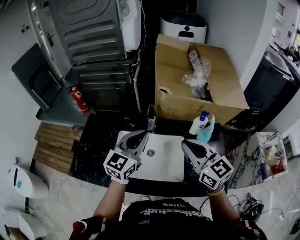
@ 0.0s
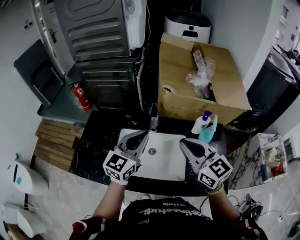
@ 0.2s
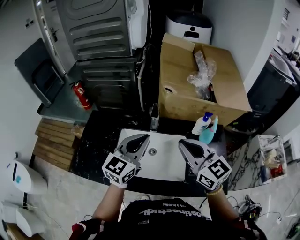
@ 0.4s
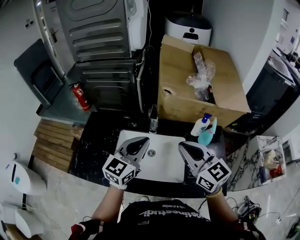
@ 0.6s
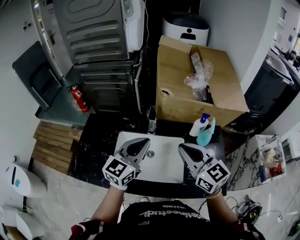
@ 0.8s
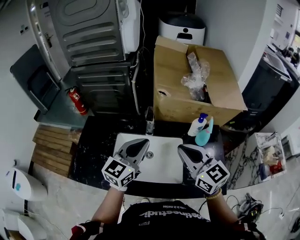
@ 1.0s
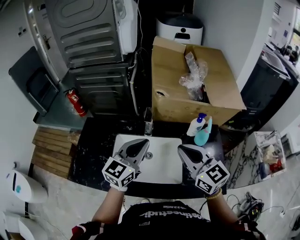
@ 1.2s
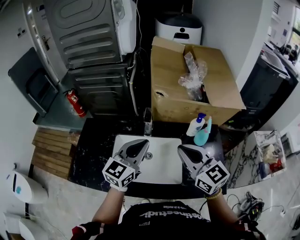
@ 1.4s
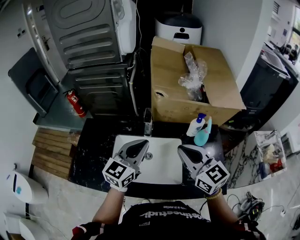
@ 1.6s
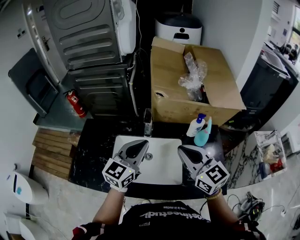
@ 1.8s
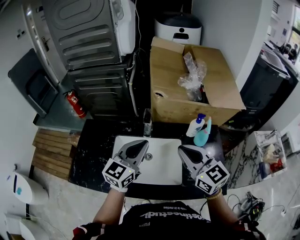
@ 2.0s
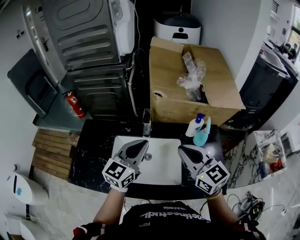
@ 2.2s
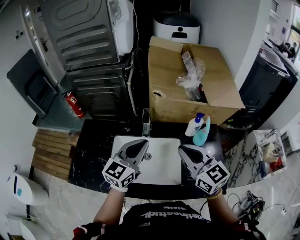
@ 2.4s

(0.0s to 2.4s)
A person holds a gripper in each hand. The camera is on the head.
0.0s - 2.4s: There are only small adjustments of the grippers.

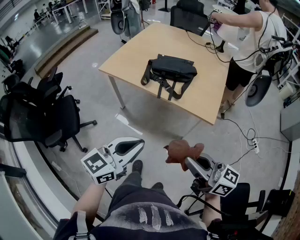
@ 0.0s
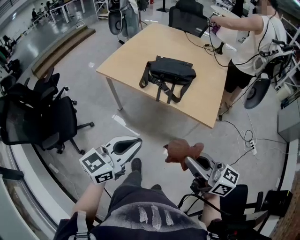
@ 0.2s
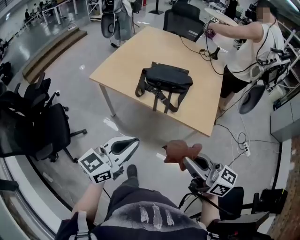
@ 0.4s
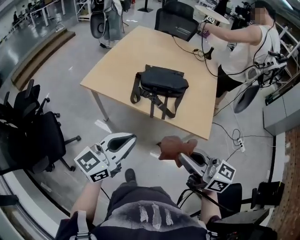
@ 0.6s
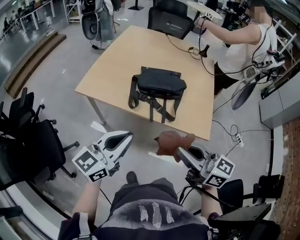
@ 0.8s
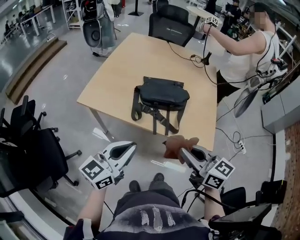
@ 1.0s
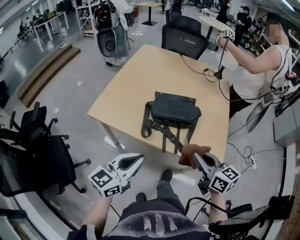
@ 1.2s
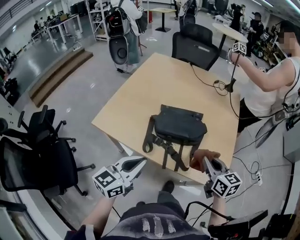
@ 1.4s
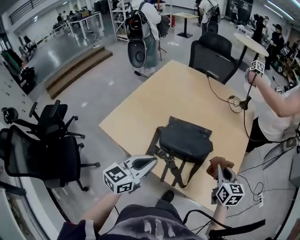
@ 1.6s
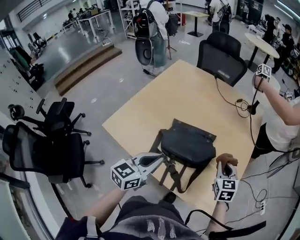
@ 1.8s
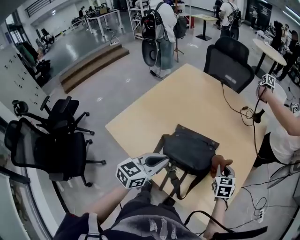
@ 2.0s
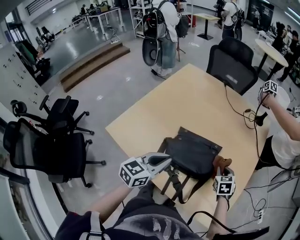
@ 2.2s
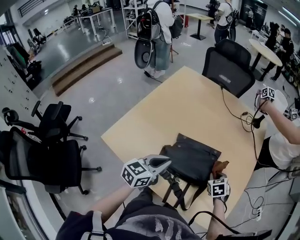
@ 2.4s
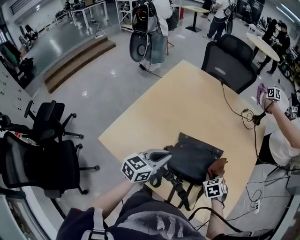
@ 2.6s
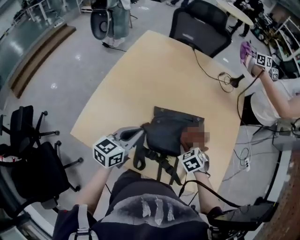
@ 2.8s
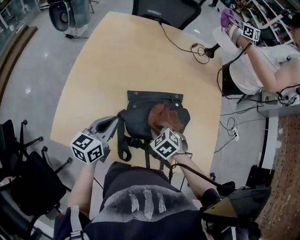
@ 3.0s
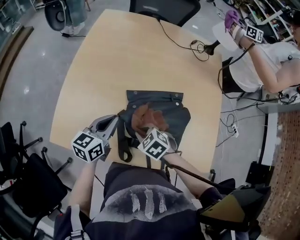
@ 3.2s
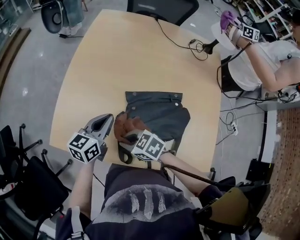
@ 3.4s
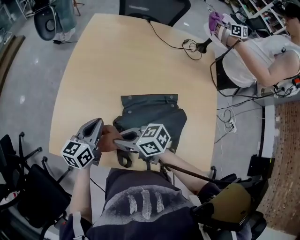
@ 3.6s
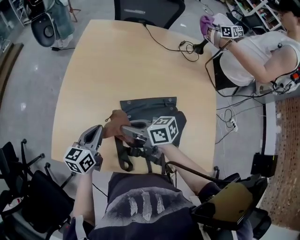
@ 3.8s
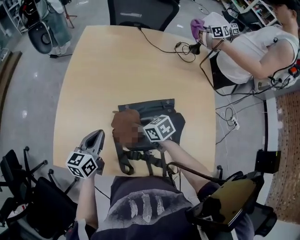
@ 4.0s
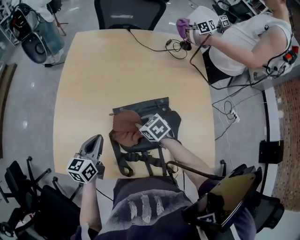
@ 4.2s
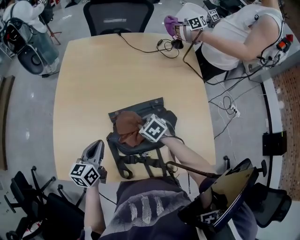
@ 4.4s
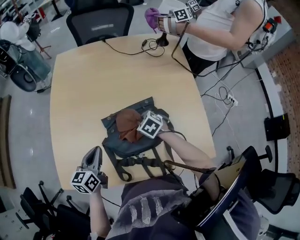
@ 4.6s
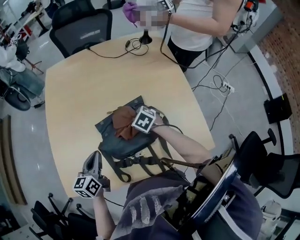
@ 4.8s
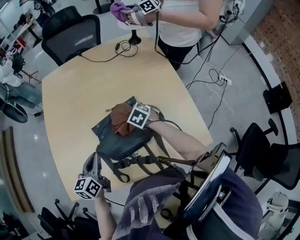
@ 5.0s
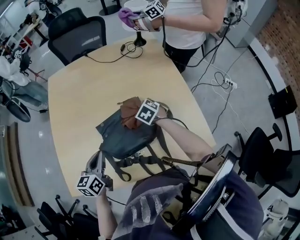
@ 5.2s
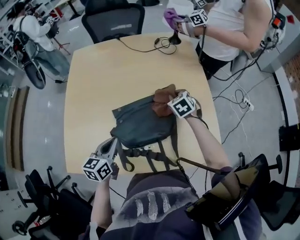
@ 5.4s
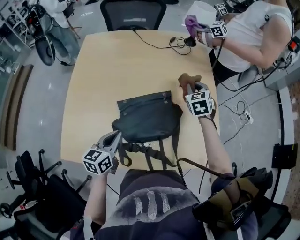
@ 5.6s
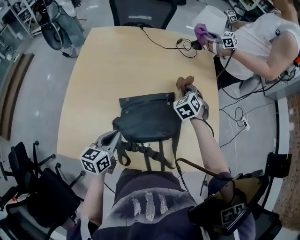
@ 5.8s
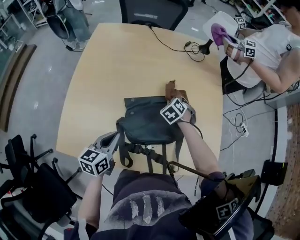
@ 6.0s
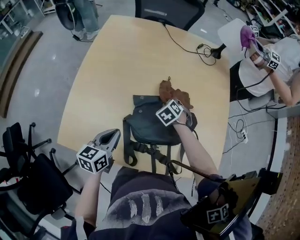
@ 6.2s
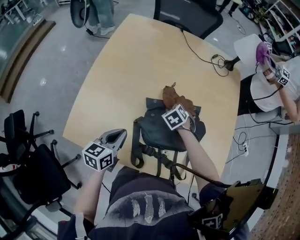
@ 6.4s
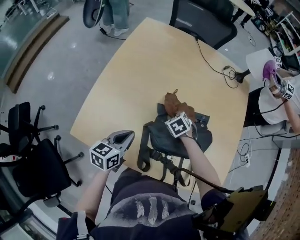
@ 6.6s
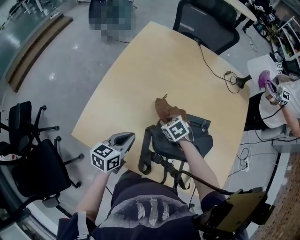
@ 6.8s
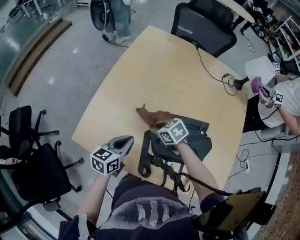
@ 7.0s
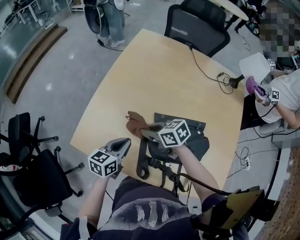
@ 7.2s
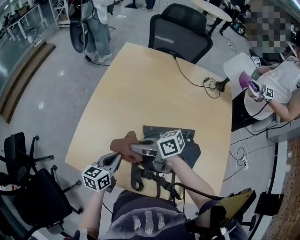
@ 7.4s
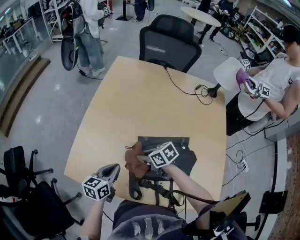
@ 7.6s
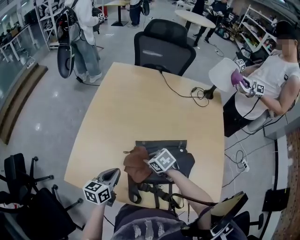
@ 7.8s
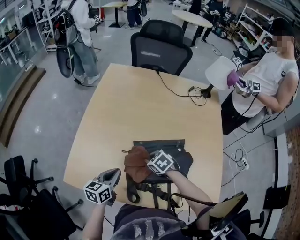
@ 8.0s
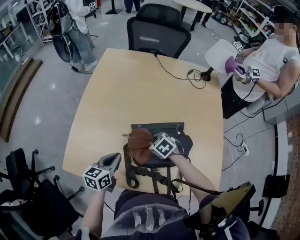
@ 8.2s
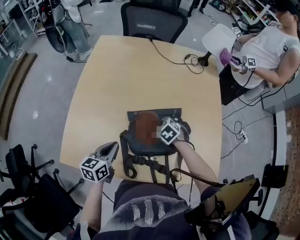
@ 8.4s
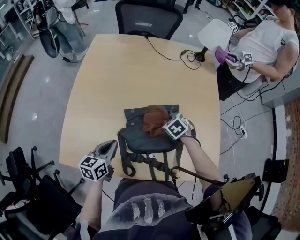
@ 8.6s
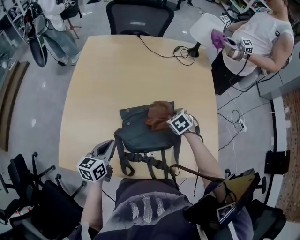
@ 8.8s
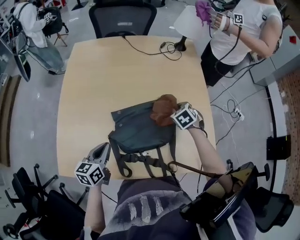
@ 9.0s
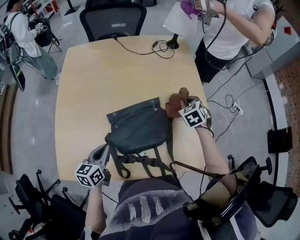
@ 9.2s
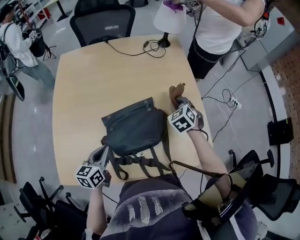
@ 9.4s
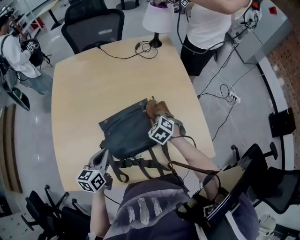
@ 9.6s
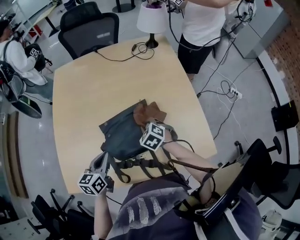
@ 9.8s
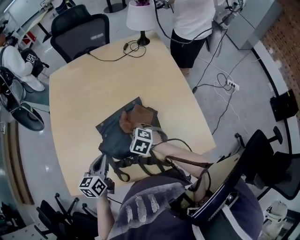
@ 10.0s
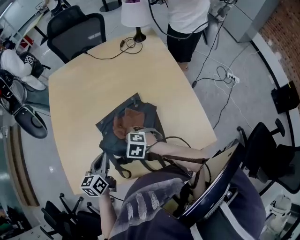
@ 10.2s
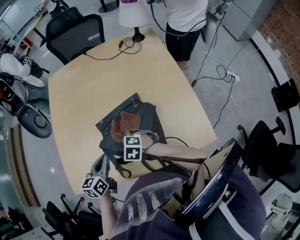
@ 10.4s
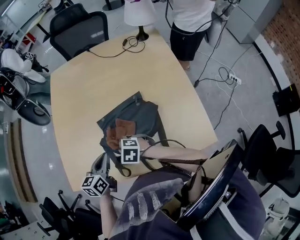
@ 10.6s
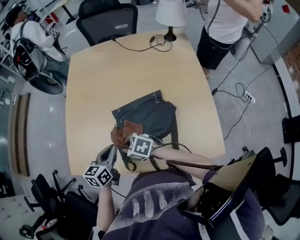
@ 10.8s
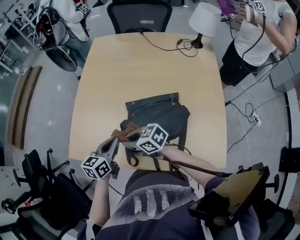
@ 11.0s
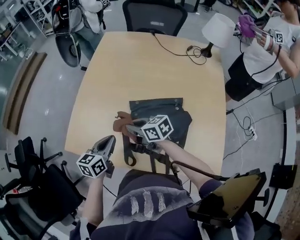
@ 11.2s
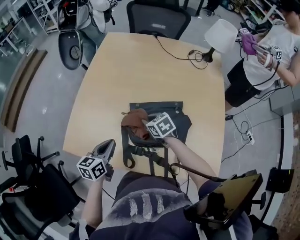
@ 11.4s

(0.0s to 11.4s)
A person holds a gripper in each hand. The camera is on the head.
0.0s - 1.4s: The two grippers go approximately 40 cm forward. The right gripper turns by approximately 40 degrees.
1.4s - 2.8s: The right gripper shifts roughly 30 cm downward, forward and to the left, and tilts its fingers approximately 40 degrees downward. The left gripper is displaced forward by approximately 30 cm.
2.8s - 4.2s: The right gripper goes upward and returns, some 10 cm each way, and rotates about 30 degrees.
4.2s - 5.6s: The right gripper moves about 30 cm, and turns by about 40 degrees. The left gripper ends up about 10 cm from where it was.
5.6s - 7.2s: The left gripper shifts by some 10 cm; the right gripper moves about 15 cm downward and comes back, and swivels about 70 degrees.
7.2s - 8.6s: The left gripper ends up some 5 cm from where it was; the right gripper moves about 25 cm, and points its fingers approximately 30 degrees further downward.
8.6s - 10.0s: The right gripper shifts roughly 10 cm backward, and goes to the right and returns, some 15 cm each way, while the left gripper heads to the right, covering approximately 5 cm.
10.0s - 11.4s: The right gripper changes its angle by some 20 degrees, while the left gripper shifts by about 10 cm.

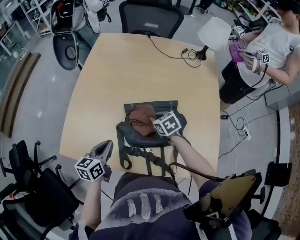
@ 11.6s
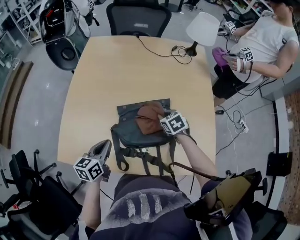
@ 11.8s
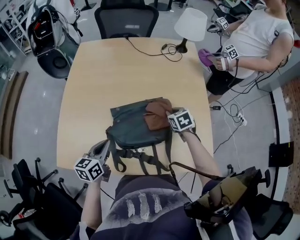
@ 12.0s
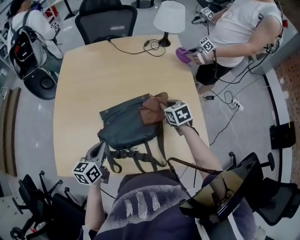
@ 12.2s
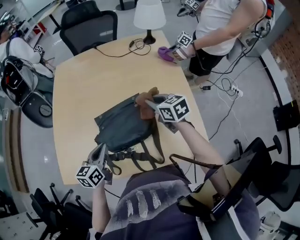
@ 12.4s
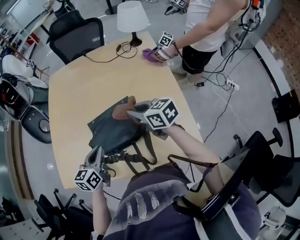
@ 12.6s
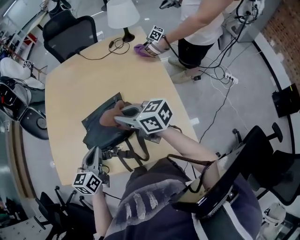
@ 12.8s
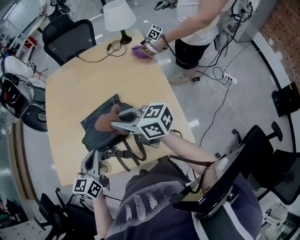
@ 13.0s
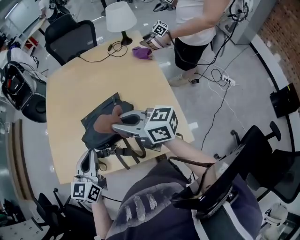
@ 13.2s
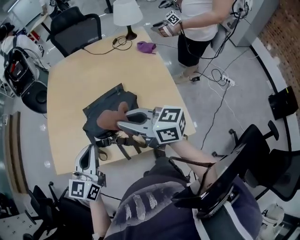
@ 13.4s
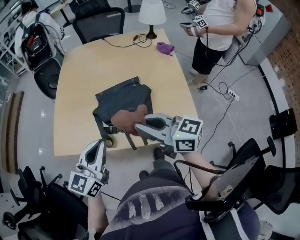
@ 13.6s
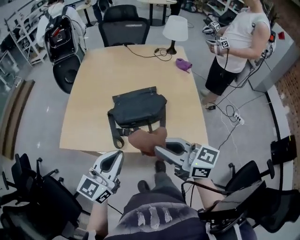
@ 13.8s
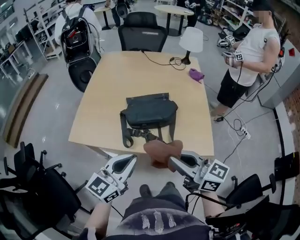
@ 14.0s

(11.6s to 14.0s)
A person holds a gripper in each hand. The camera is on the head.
11.6s - 12.8s: The right gripper shifts some 25 cm upward, to the right and backward, and tilts its fingers about 40 degrees upward. Meanwhile the left gripper goes about 20 cm to the right and upward.
12.8s - 14.0s: The left gripper heads backward and upward, covering about 25 cm, and swivels approximately 30 degrees, while the right gripper is displaced backward and to the left by about 30 cm.

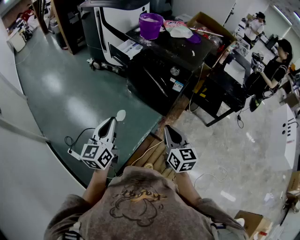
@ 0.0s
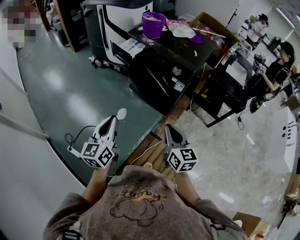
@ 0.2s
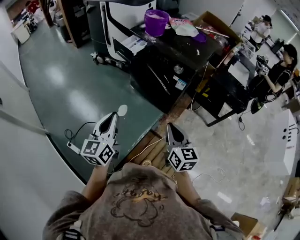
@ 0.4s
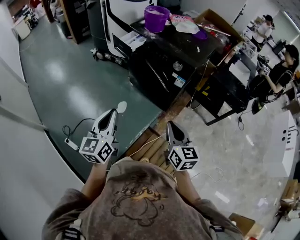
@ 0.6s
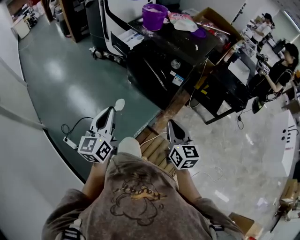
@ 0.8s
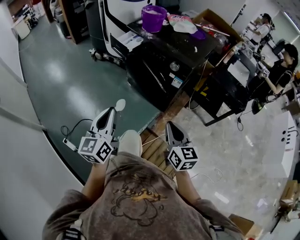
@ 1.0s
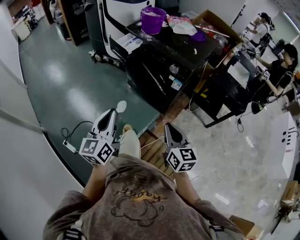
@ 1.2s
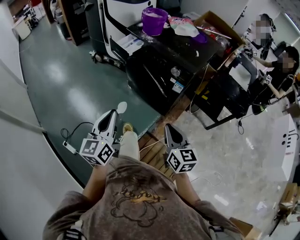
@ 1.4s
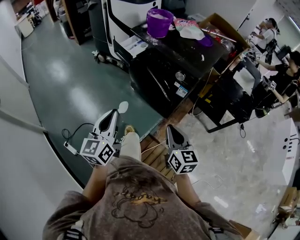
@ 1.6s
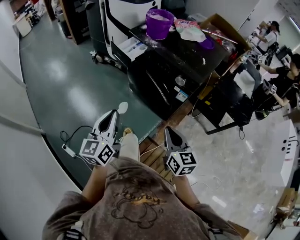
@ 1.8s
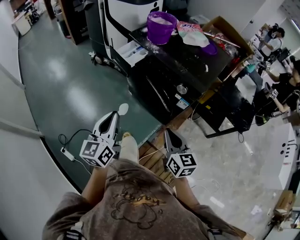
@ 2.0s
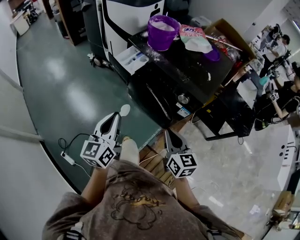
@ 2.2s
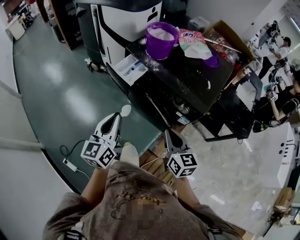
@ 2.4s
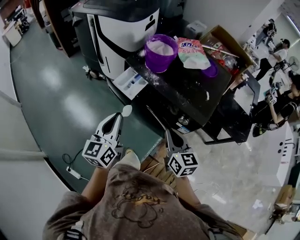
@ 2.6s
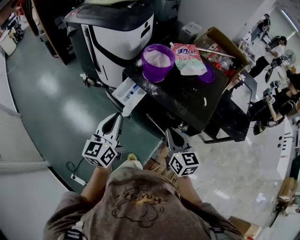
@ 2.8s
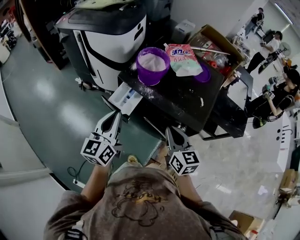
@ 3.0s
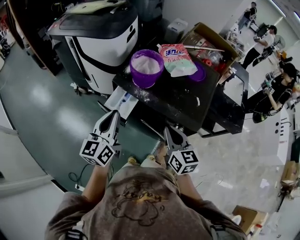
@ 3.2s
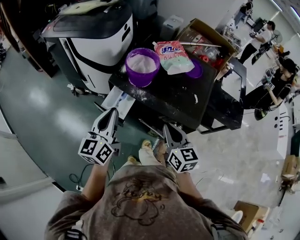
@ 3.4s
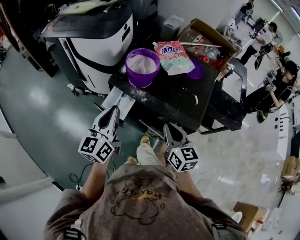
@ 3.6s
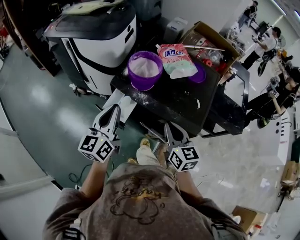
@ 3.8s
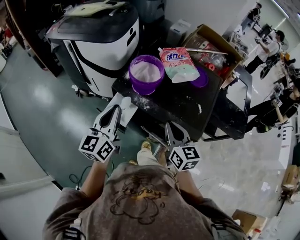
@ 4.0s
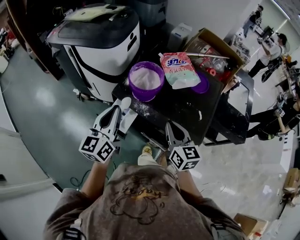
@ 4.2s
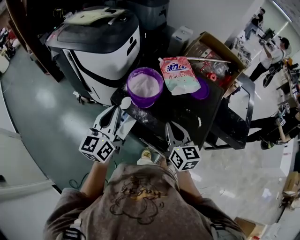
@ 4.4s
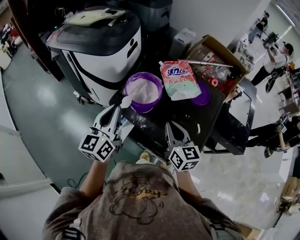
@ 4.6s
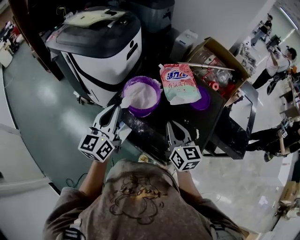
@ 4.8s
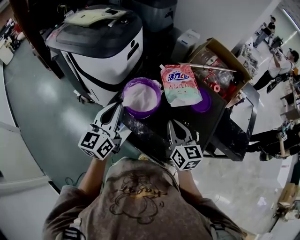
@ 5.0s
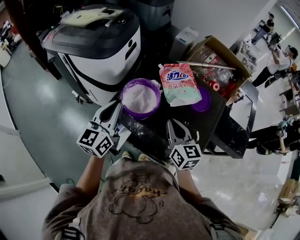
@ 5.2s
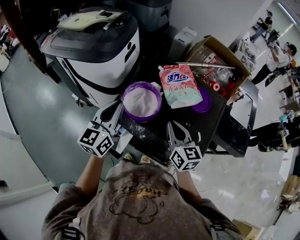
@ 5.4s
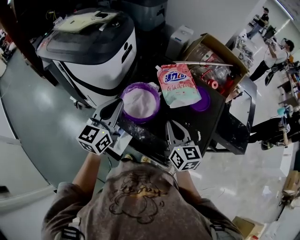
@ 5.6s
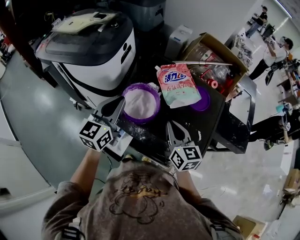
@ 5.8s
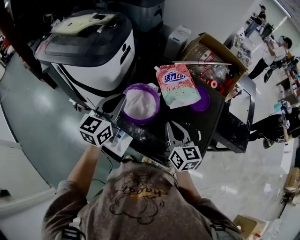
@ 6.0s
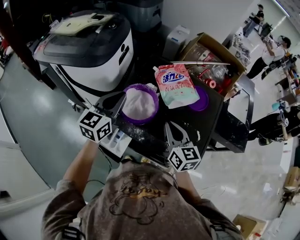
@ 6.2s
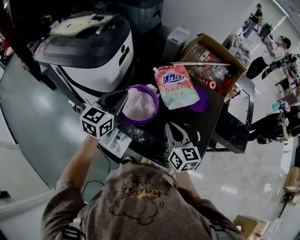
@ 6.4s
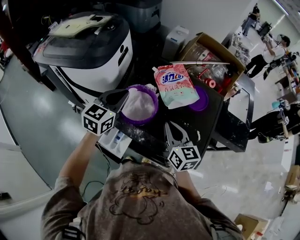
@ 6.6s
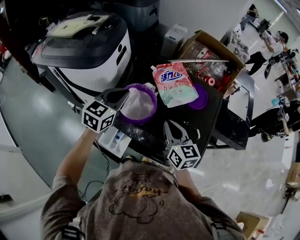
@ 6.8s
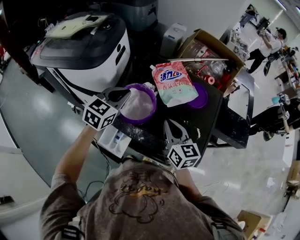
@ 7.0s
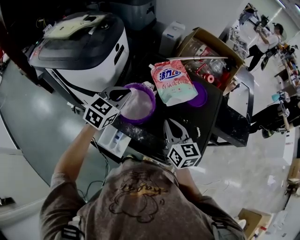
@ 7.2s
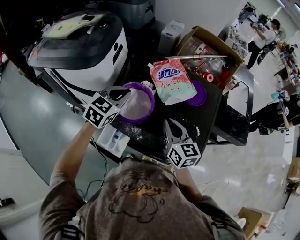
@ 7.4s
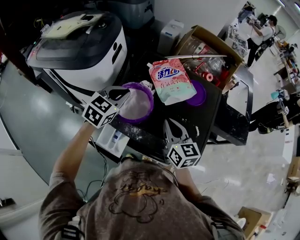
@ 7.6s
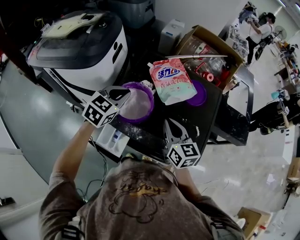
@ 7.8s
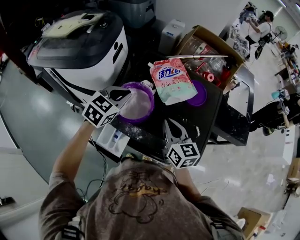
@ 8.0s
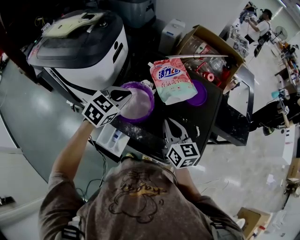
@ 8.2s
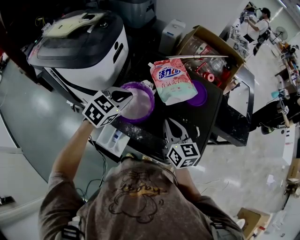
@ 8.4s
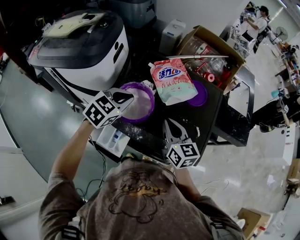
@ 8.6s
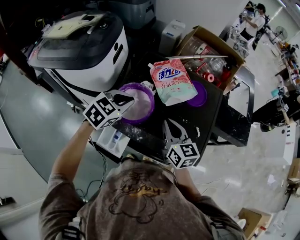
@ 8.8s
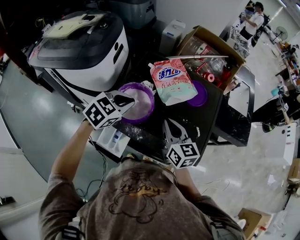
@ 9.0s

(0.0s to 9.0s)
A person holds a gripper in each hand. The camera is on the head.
0.0s - 1.6s: Both grippers move forward, about 5 cm.
1.6s - 3.0s: The two grippers go some 35 cm forward.
3.0s - 4.4s: Both grippers move forward, approximately 15 cm.
4.4s - 6.0s: Both grippers travel together forward, about 15 cm.
6.0s - 7.6s: The left gripper moves downward, roughly 5 cm, and turns by approximately 30 degrees.
7.6s - 9.0s: The grippers stay close to where they were, moving slightly.
